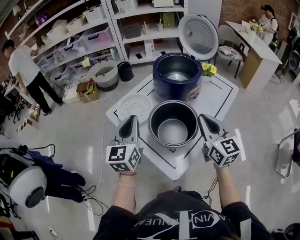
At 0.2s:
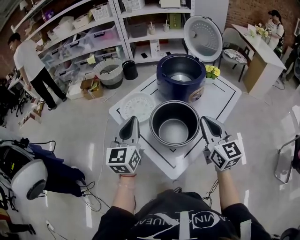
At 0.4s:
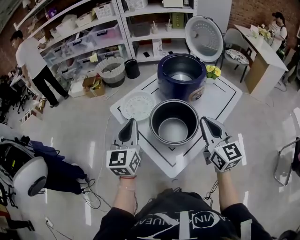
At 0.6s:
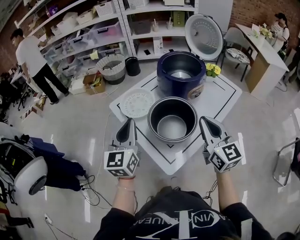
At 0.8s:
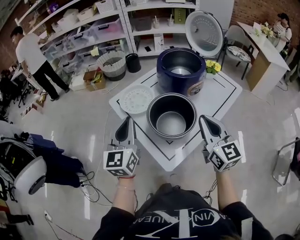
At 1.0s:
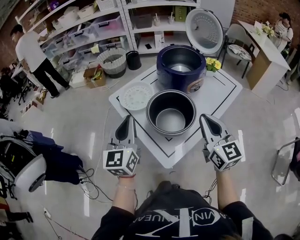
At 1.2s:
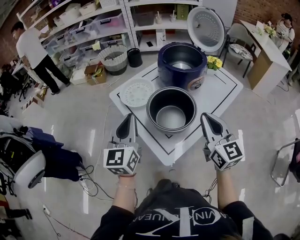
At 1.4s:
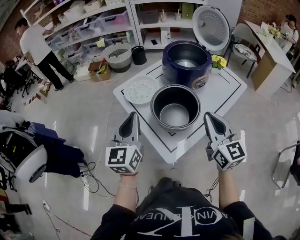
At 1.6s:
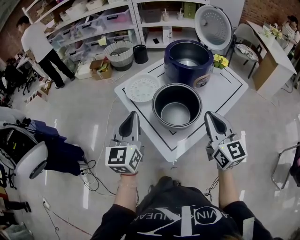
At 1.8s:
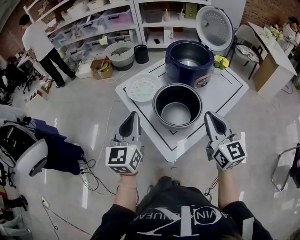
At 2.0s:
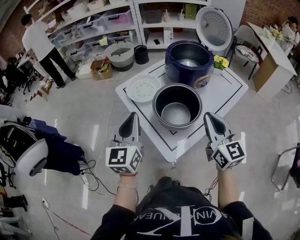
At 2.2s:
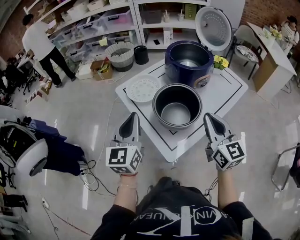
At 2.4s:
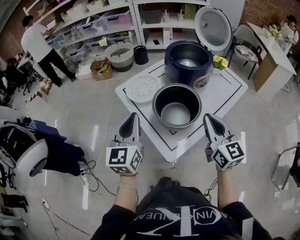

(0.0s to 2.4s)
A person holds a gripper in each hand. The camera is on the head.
0.0s - 1.2s: The right gripper shifts some 5 cm backward, while the left gripper shifts approximately 10 cm backward.
1.2s - 2.4s: The grippers move only a little.

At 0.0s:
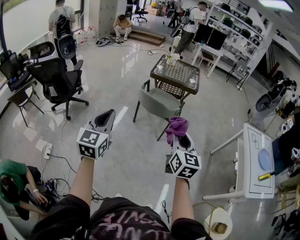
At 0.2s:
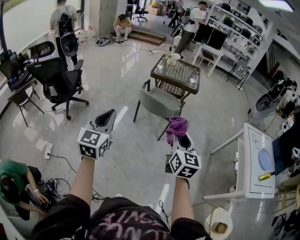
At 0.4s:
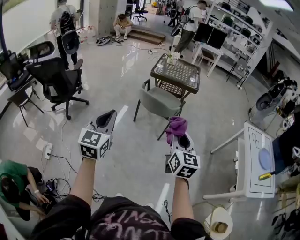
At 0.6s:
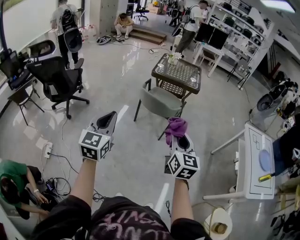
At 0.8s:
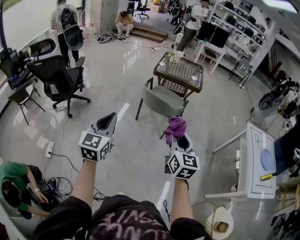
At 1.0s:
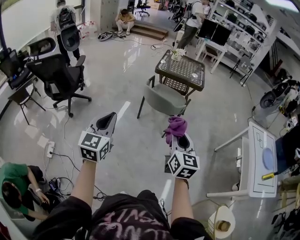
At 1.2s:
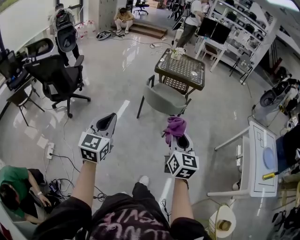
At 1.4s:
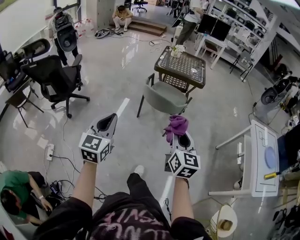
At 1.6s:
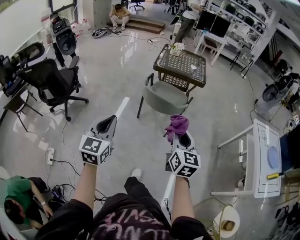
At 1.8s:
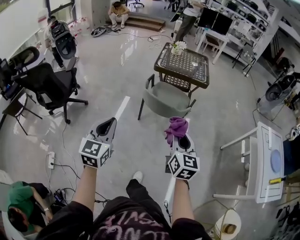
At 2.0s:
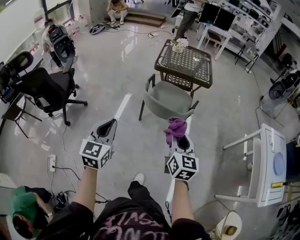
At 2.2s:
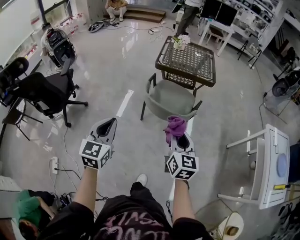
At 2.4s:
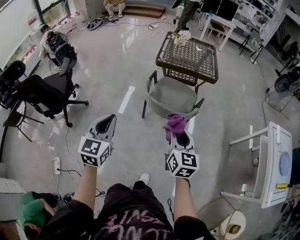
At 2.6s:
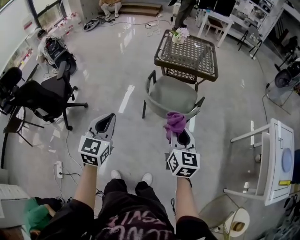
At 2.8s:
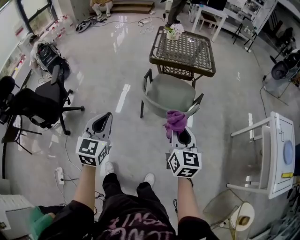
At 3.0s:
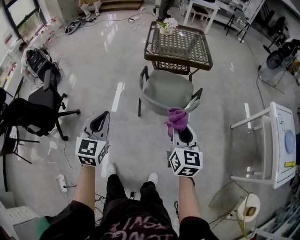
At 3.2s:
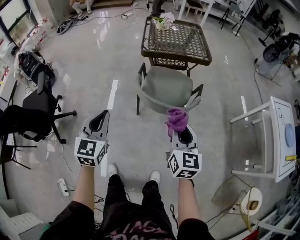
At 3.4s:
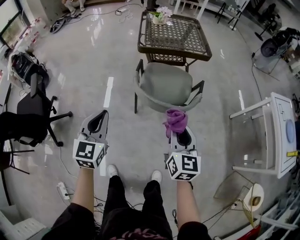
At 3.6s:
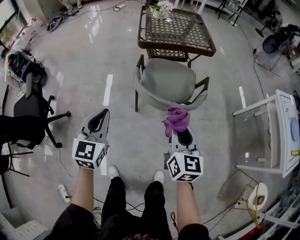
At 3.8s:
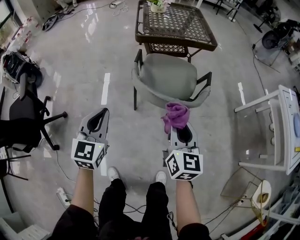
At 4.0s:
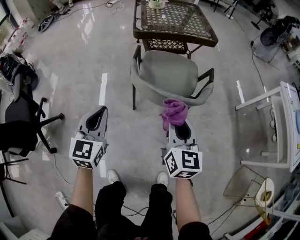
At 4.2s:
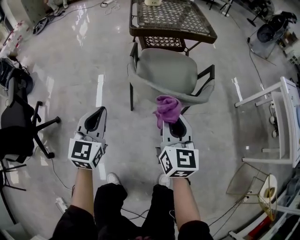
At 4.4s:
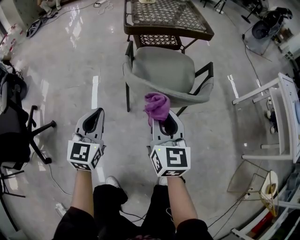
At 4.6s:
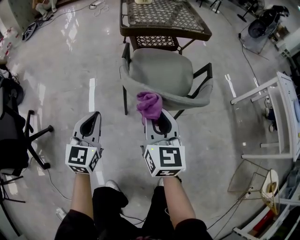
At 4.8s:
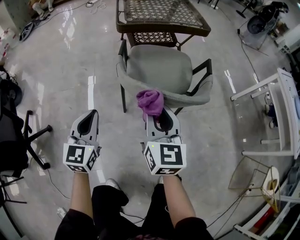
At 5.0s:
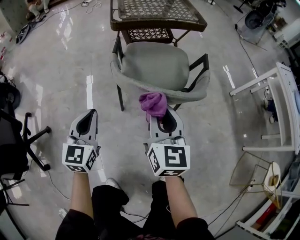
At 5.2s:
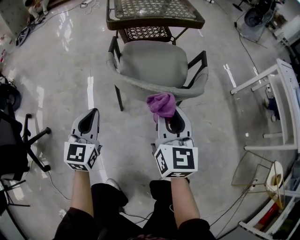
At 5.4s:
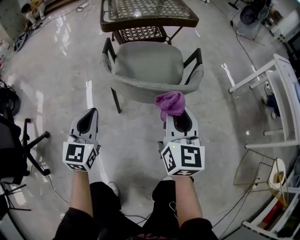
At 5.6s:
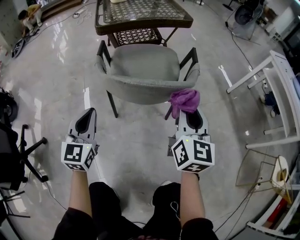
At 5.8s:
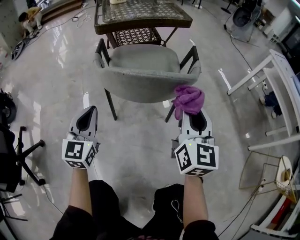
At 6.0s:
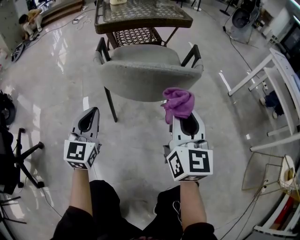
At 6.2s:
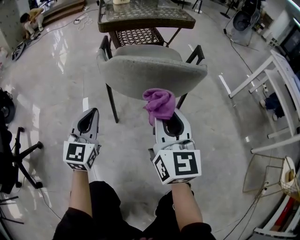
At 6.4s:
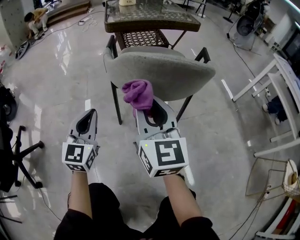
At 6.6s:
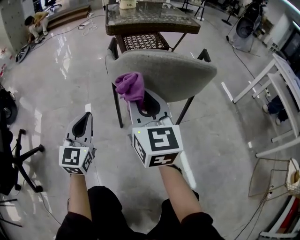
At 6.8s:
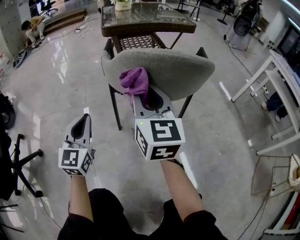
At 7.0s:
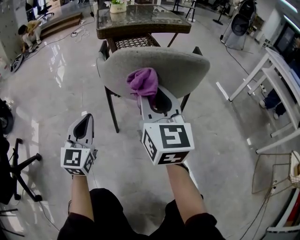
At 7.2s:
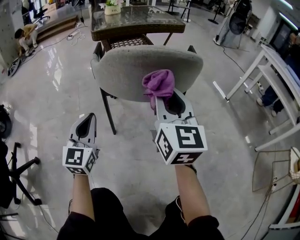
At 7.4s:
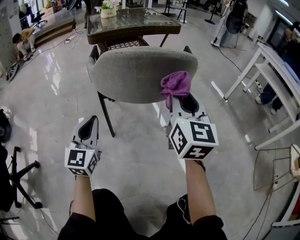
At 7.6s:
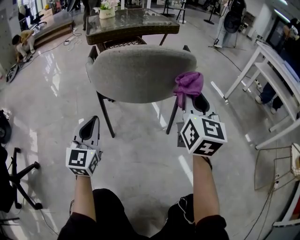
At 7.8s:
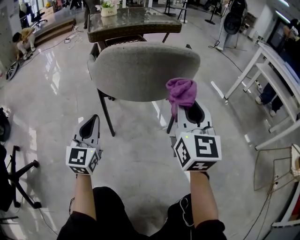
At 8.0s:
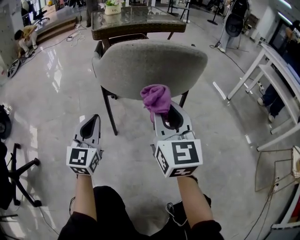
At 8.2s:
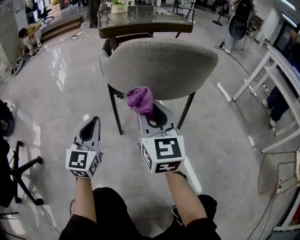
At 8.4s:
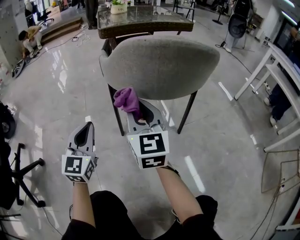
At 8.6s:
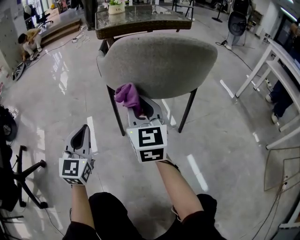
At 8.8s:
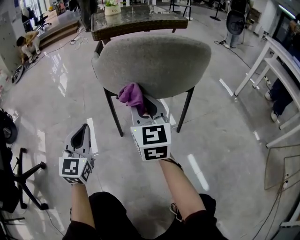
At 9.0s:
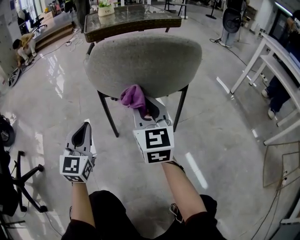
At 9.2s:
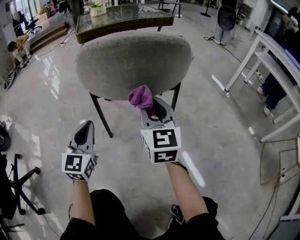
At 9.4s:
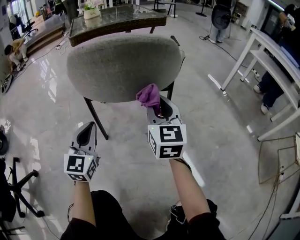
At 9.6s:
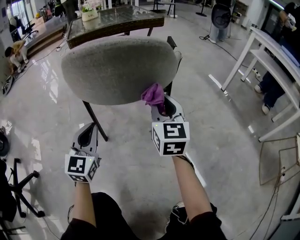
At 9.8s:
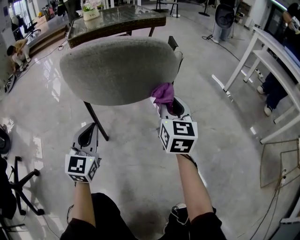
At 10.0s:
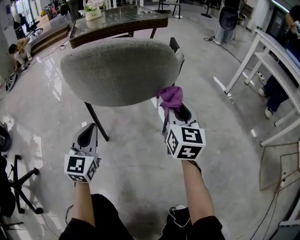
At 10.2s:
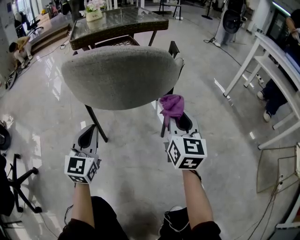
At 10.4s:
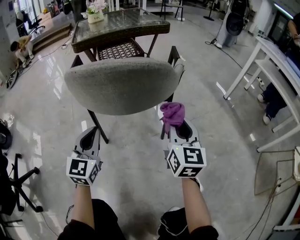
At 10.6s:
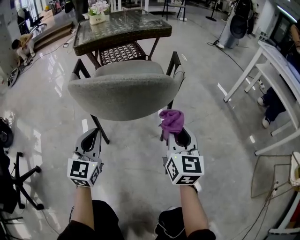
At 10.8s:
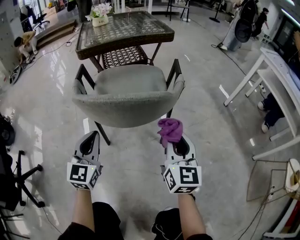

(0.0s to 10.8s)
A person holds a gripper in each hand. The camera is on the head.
0.0s - 1.6s: The right gripper is displaced forward, downward and to the left by about 15 cm; the left gripper shifts about 10 cm forward and downward.
1.6s - 3.0s: Both grippers travel together forward, some 25 cm.
3.0s - 4.6s: The left gripper travels downward and forward by about 35 cm. Meanwhile the right gripper heads downward, to the left and forward, covering roughly 30 cm.
4.6s - 6.2s: The right gripper heads to the right and downward, covering some 10 cm. The left gripper is displaced downward and to the right by about 15 cm.
6.2s - 7.8s: The left gripper moves downward, approximately 5 cm, and travels to the left and back again, about 5 cm each way. The right gripper swings left and right, some 25 cm each way, with 2 reversals.
7.8s - 9.2s: The left gripper travels to the left and back again, roughly 10 cm each way. The right gripper is displaced downward and forward by some 10 cm, and reaches some 20 cm to the left, then returns.
9.2s - 10.8s: The left gripper shifts approximately 10 cm upward and to the right, while the right gripper is displaced to the right by some 15 cm.

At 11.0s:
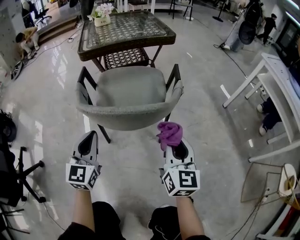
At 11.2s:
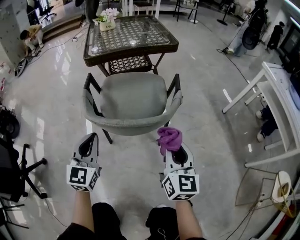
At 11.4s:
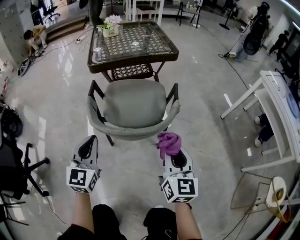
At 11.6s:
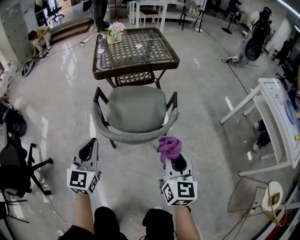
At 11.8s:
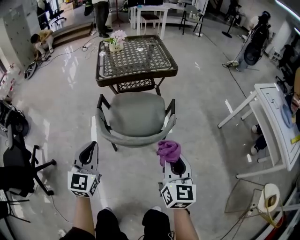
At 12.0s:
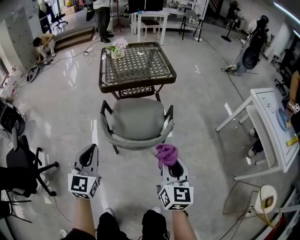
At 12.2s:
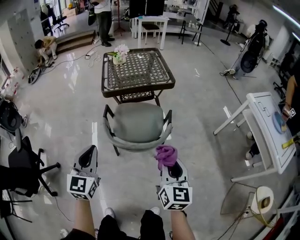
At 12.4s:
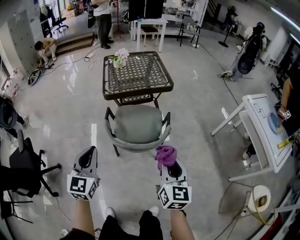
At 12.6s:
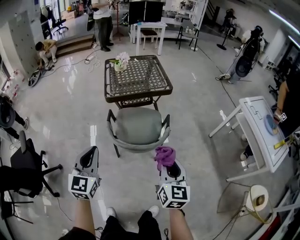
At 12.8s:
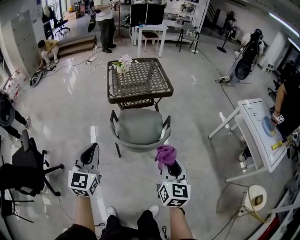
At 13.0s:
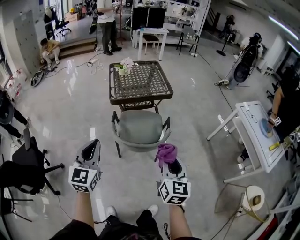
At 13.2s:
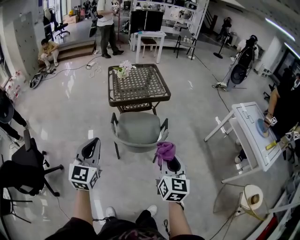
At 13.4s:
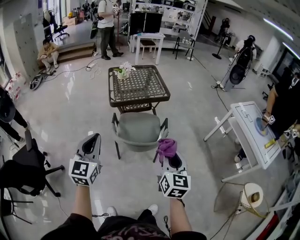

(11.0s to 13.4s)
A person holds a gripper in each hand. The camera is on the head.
11.0s - 12.2s: Both grippers travel together upward, some 30 cm.
12.2s - 13.4s: Both grippers move upward and backward, roughly 15 cm.

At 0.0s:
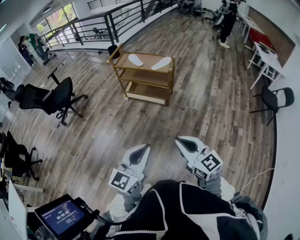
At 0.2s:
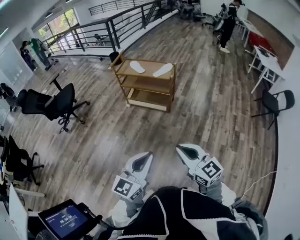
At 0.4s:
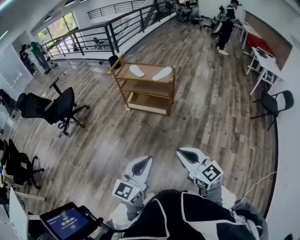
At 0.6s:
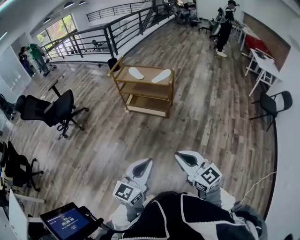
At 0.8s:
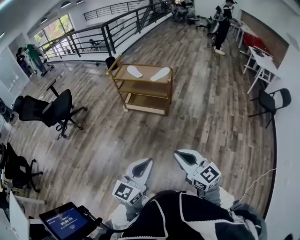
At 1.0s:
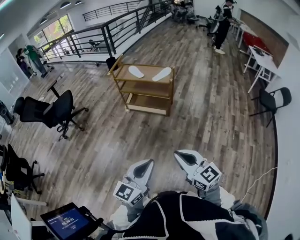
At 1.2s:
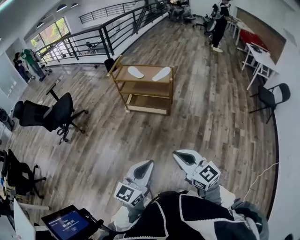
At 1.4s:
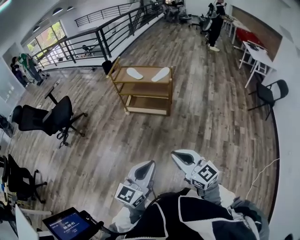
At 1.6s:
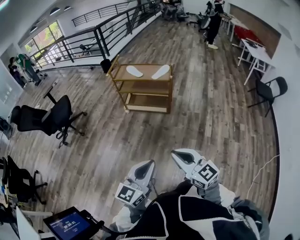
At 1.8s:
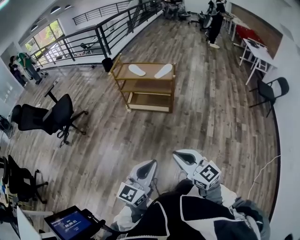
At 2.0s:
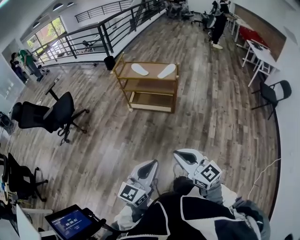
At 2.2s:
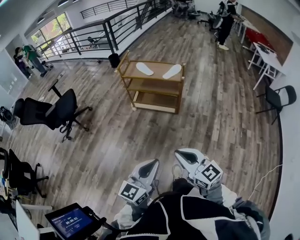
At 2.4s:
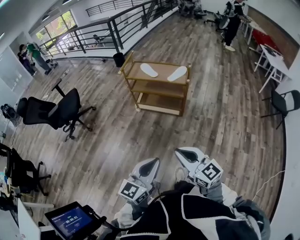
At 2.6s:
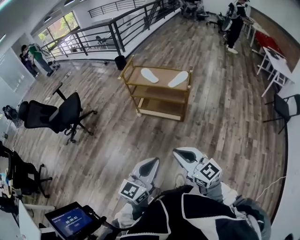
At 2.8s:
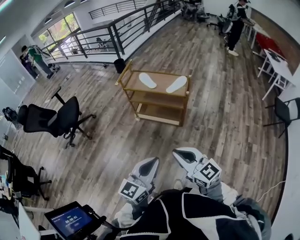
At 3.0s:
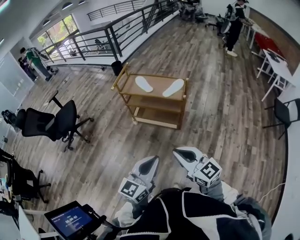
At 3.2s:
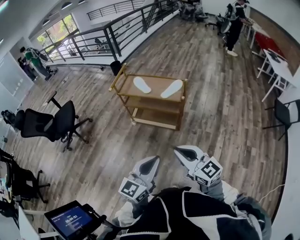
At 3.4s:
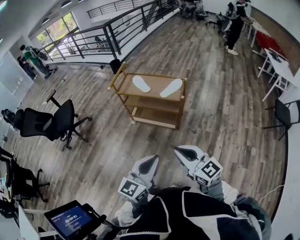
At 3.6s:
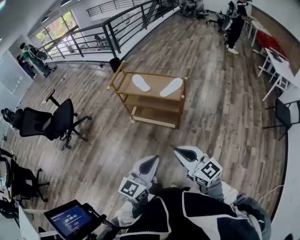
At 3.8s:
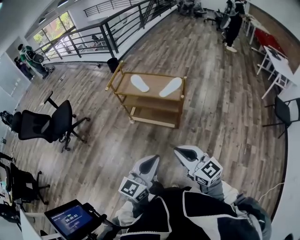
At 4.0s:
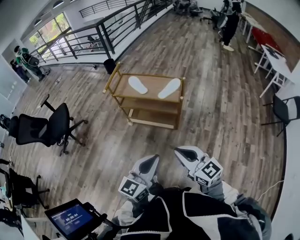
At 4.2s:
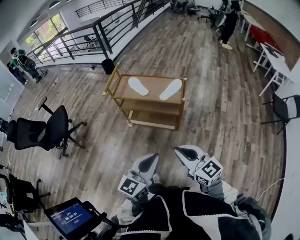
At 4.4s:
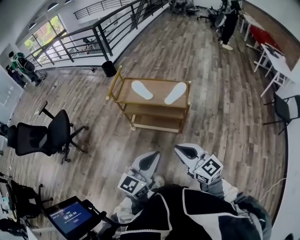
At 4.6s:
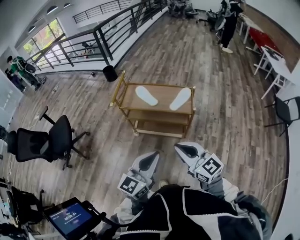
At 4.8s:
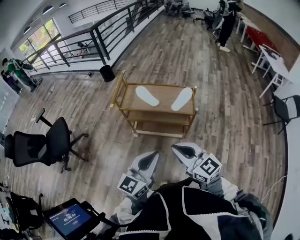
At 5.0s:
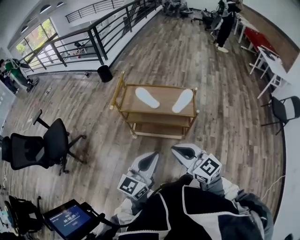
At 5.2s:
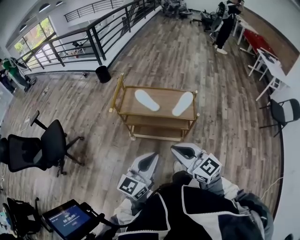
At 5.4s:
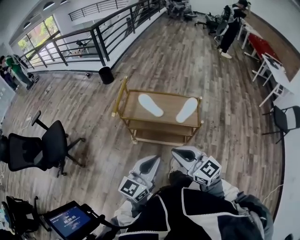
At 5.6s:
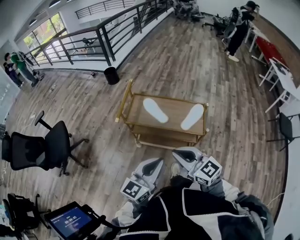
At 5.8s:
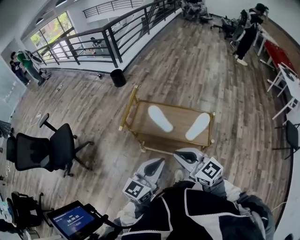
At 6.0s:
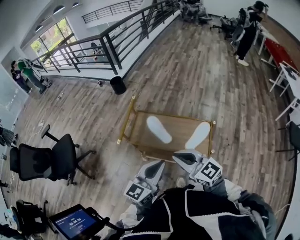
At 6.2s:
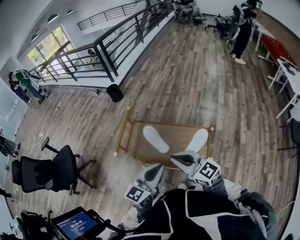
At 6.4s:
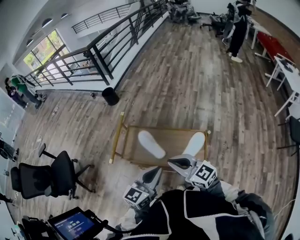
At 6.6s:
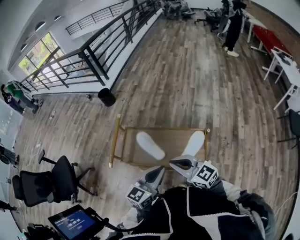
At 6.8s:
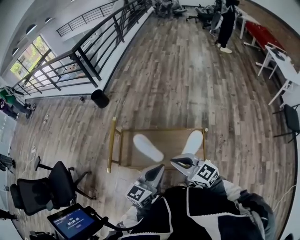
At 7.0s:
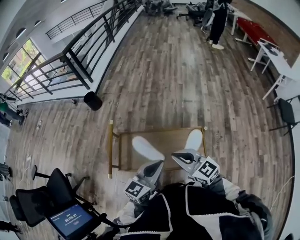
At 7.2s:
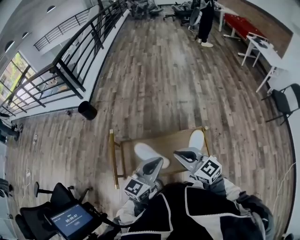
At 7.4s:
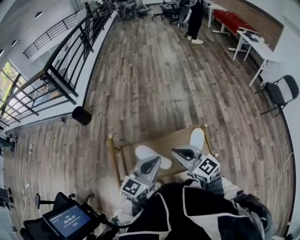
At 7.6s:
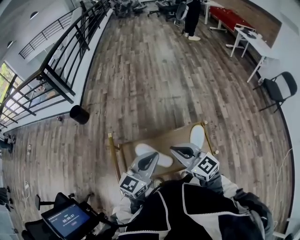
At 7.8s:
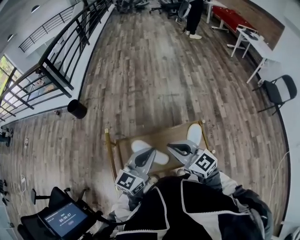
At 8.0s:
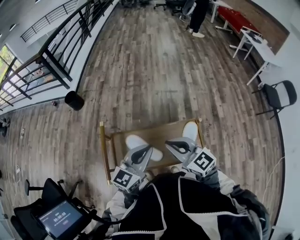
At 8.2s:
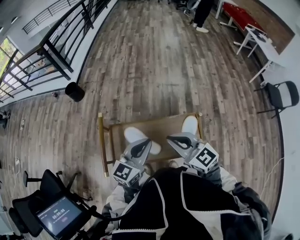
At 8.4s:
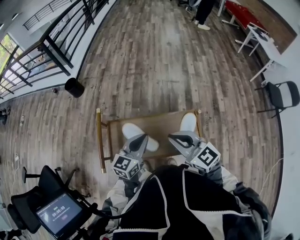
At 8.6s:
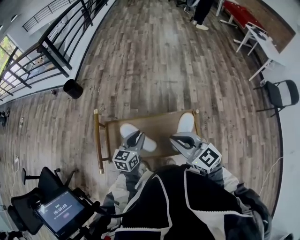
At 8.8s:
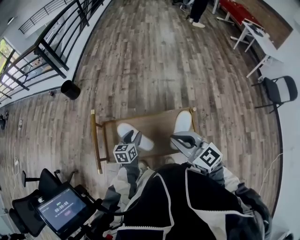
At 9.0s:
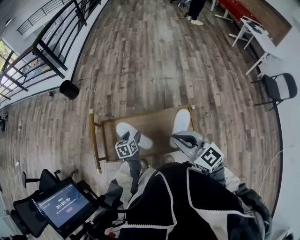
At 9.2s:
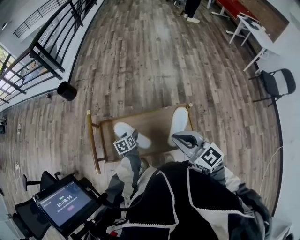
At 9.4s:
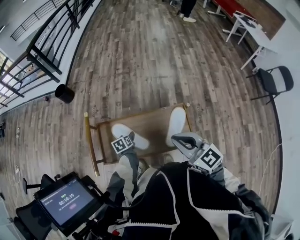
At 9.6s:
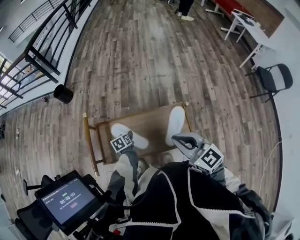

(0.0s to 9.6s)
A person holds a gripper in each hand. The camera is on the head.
0.0s - 1.6s: Both grippers travel together to the left, some 10 cm.
1.6s - 3.2s: Both grippers travel together forward, about 25 cm.
3.2s - 4.8s: Both grippers move forward and to the left, approximately 25 cm.
4.8s - 6.4s: The two grippers go approximately 35 cm forward.
6.4s - 8.0s: The left gripper moves roughly 20 cm. The right gripper shifts by some 15 cm, and turns by about 20 degrees.
8.0s - 9.6s: The right gripper moves to the right, about 10 cm. The left gripper is displaced downward by roughly 35 cm, points its fingers roughly 50 degrees further downward, and opens up.
